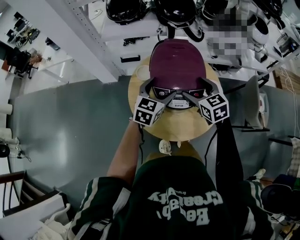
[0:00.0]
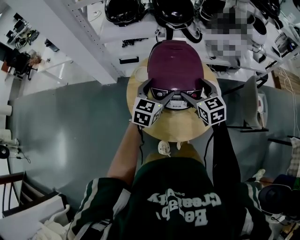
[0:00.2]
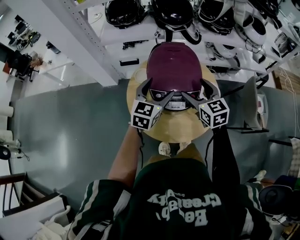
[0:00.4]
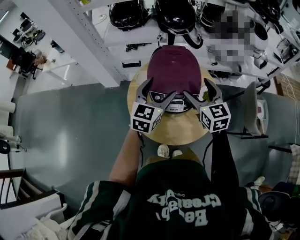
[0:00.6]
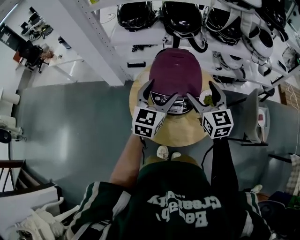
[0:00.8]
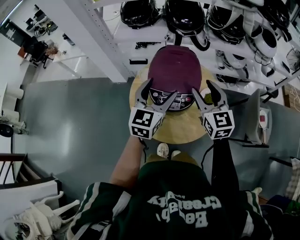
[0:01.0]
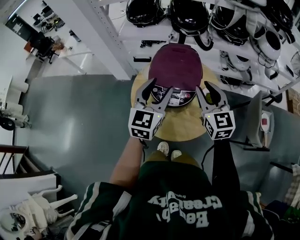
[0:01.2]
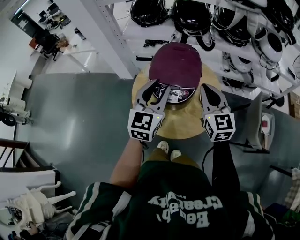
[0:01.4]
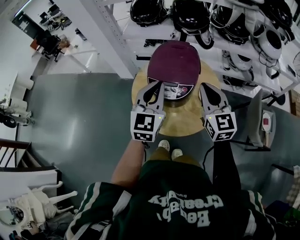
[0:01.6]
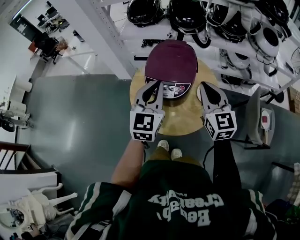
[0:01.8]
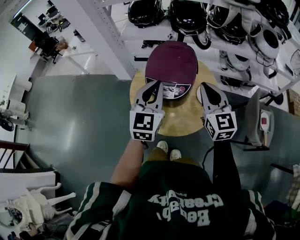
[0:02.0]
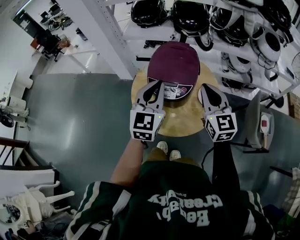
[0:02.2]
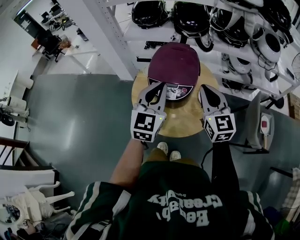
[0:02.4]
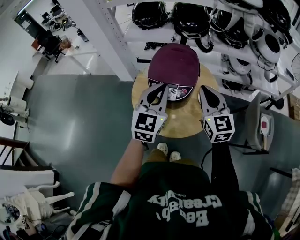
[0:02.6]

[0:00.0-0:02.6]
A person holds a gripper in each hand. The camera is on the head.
0:00.0 to 0:01.2: The left gripper is displaced upward and backward by about 15 cm, changes its angle by about 20 degrees, and closes, while the right gripper travels upward and to the right by roughly 15 cm, changes its angle by roughly 20 degrees, and closes its fingers.
0:01.2 to 0:02.6: The left gripper is displaced backward by some 5 cm, and closes.

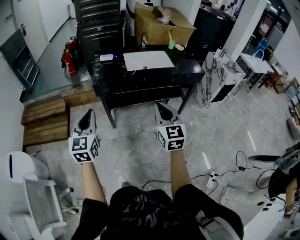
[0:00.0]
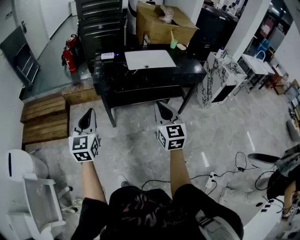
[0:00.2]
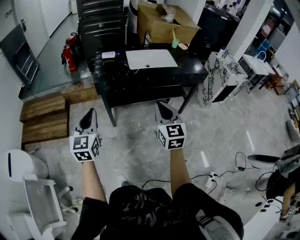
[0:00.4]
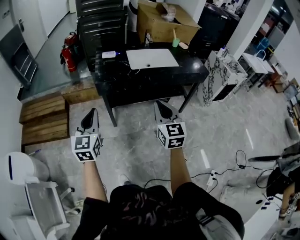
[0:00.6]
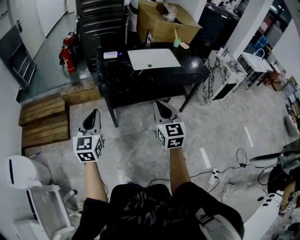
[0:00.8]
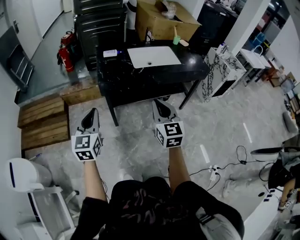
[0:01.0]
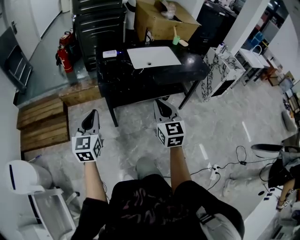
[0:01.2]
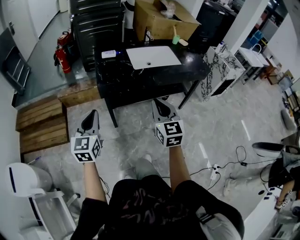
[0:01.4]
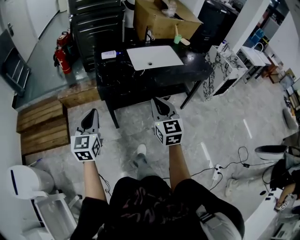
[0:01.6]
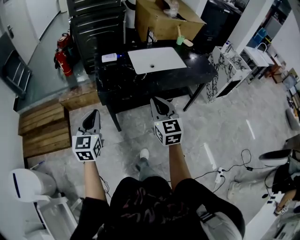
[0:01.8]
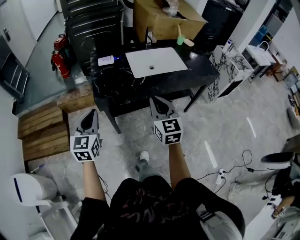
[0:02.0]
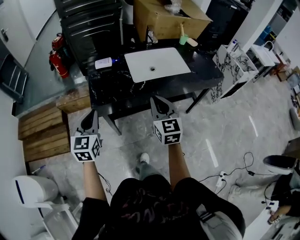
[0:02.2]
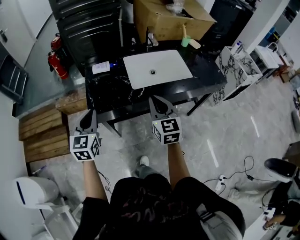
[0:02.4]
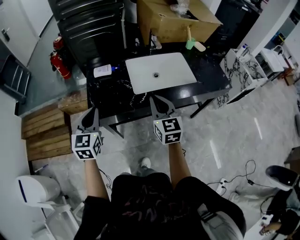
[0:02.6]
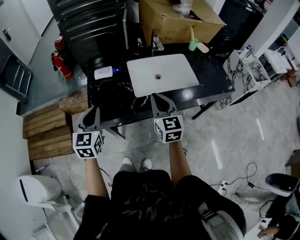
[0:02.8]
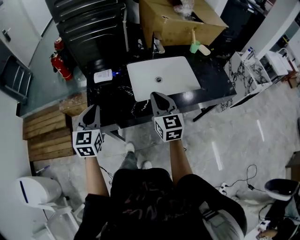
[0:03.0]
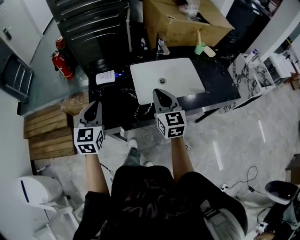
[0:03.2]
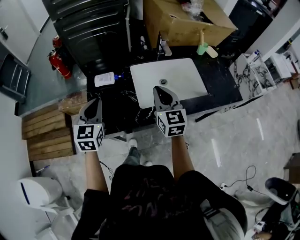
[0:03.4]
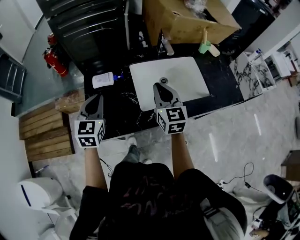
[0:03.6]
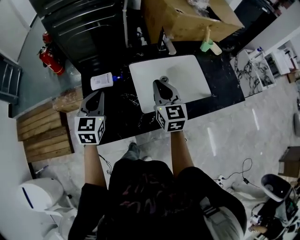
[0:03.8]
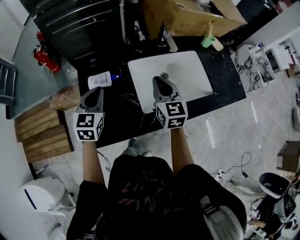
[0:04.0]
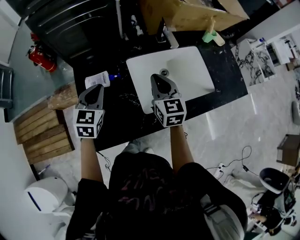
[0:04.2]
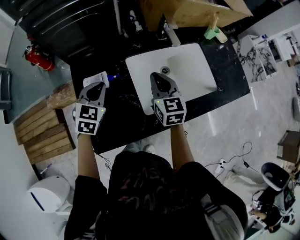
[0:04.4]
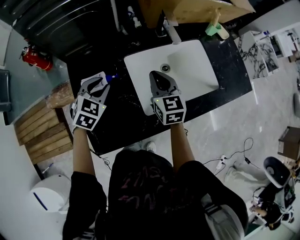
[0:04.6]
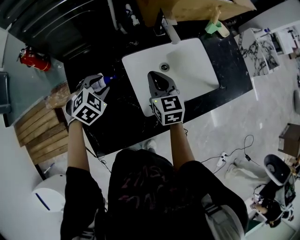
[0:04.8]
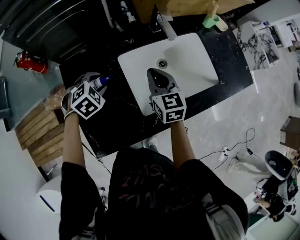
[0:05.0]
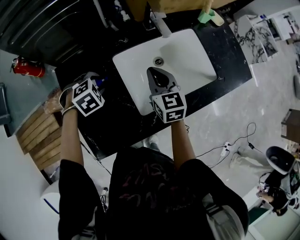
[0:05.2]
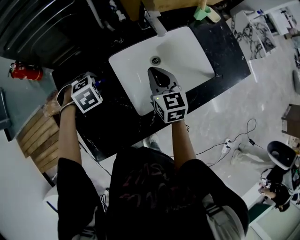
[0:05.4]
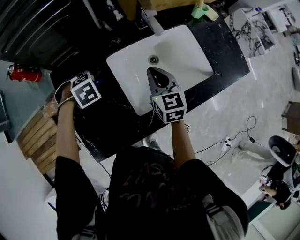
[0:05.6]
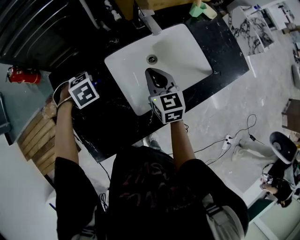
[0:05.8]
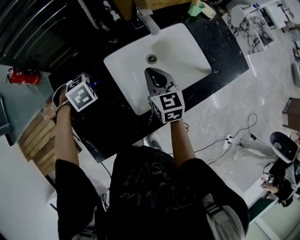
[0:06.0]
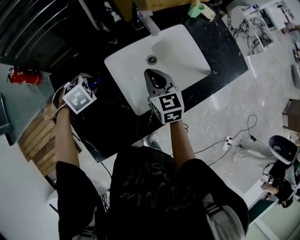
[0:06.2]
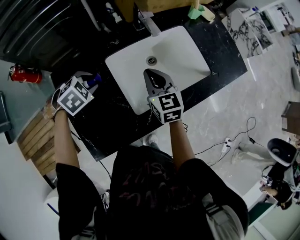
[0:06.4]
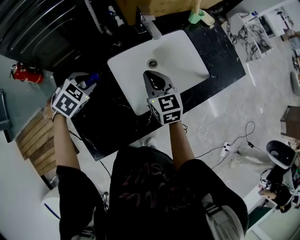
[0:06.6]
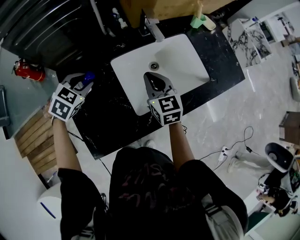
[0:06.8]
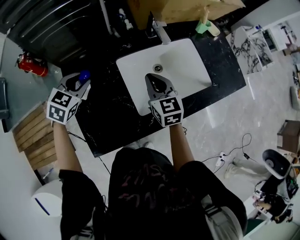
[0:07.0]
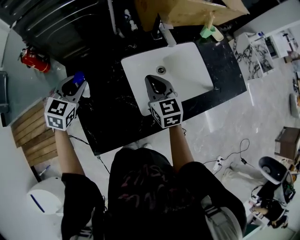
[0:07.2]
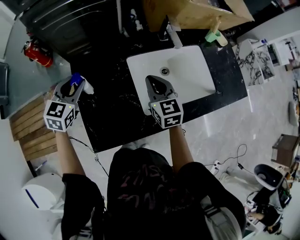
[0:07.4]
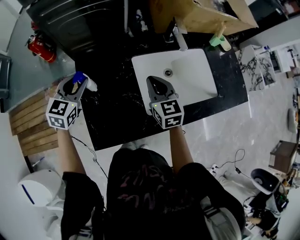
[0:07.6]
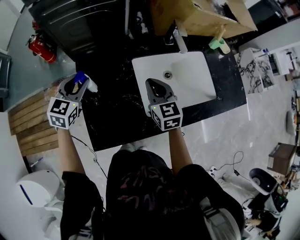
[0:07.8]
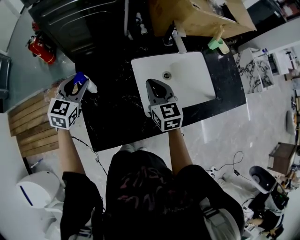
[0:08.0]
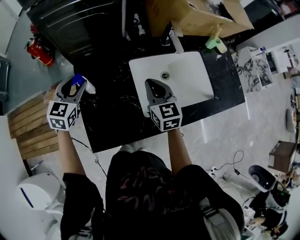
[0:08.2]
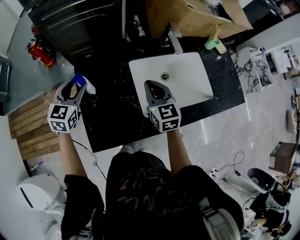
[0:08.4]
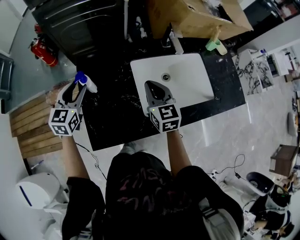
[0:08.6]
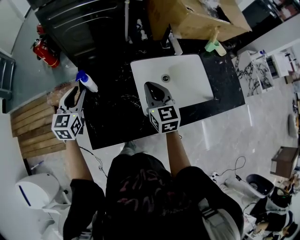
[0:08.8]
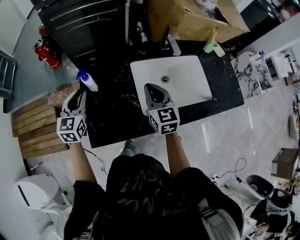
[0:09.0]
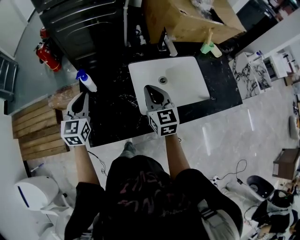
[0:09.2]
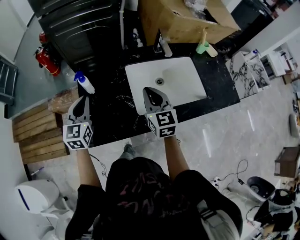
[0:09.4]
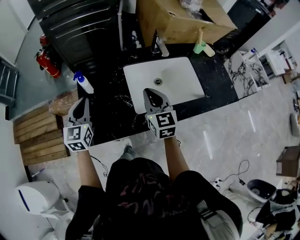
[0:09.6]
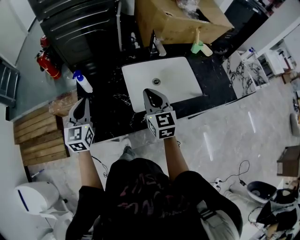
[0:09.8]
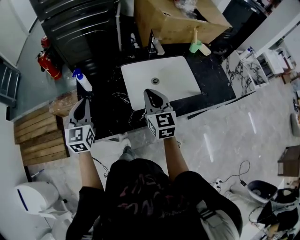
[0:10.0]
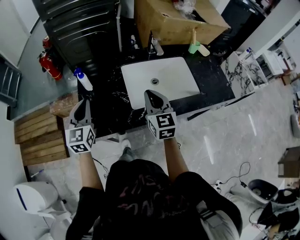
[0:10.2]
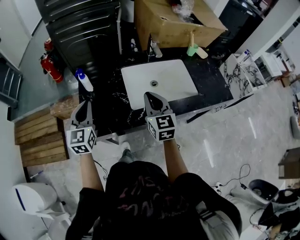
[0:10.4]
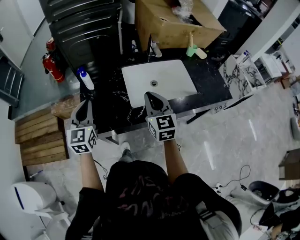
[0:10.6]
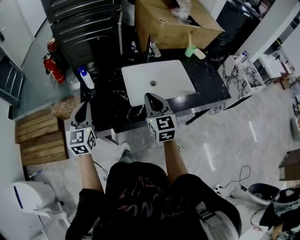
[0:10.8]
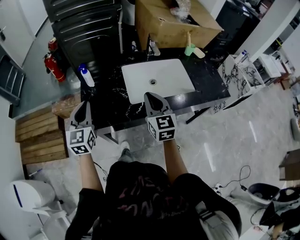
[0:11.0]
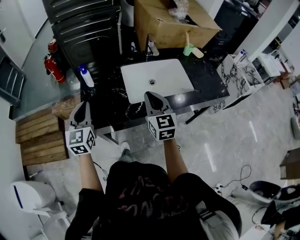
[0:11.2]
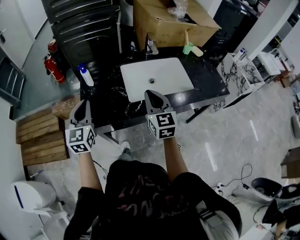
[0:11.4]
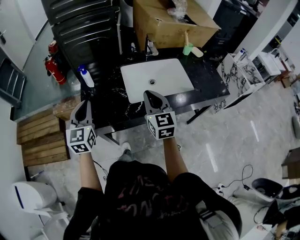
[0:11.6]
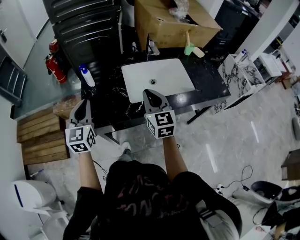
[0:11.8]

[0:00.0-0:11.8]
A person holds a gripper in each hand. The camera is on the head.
0:00.0 to 0:01.4: The left gripper goes roughly 15 cm forward and to the left. The right gripper goes some 15 cm to the left and forward.
0:01.4 to 0:03.0: Both grippers move forward, approximately 35 cm.
0:03.0 to 0:04.4: The left gripper shifts roughly 30 cm forward and downward, and changes its angle by roughly 30 degrees. Meanwhile the right gripper moves forward, some 20 cm.
0:04.4 to 0:06.0: The right gripper moves approximately 5 cm; the left gripper travels downward by about 10 cm, tilts its fingers approximately 50 degrees downward, and opens up.
0:06.0 to 0:07.4: The right gripper changes place by some 10 cm. Meanwhile the left gripper goes roughly 15 cm upward, and points its fingers approximately 50 degrees further upward.
0:07.4 to 0:08.8: The left gripper moves backward, roughly 5 cm.
0:08.8 to 0:10.4: Both grippers travel together backward, to the right and upward, roughly 15 cm. The left gripper closes its fingers.
0:10.4 to 0:11.8: The grippers both shift backward by approximately 5 cm.

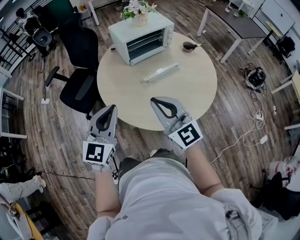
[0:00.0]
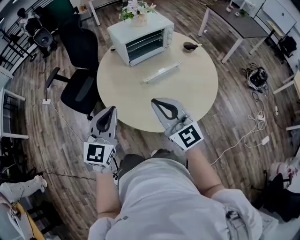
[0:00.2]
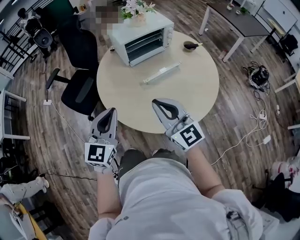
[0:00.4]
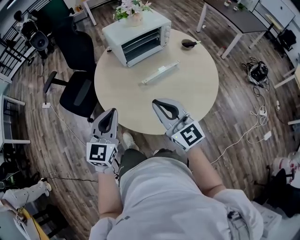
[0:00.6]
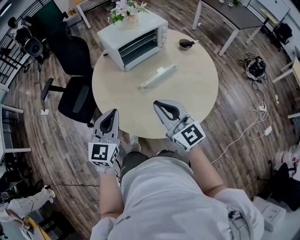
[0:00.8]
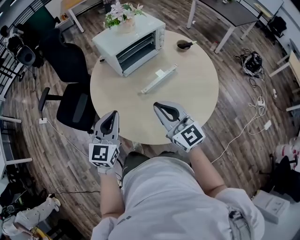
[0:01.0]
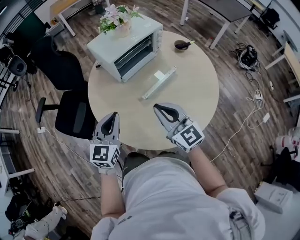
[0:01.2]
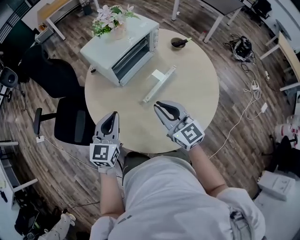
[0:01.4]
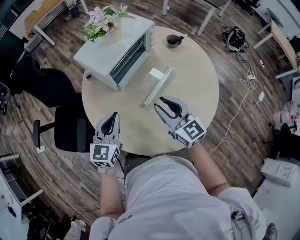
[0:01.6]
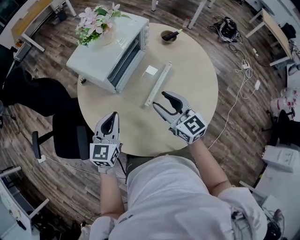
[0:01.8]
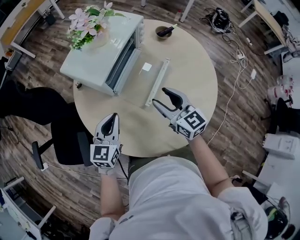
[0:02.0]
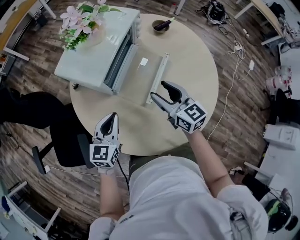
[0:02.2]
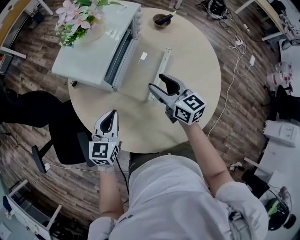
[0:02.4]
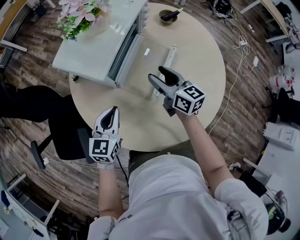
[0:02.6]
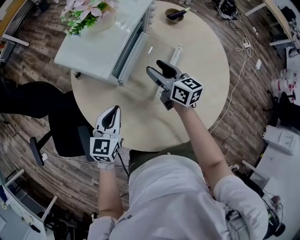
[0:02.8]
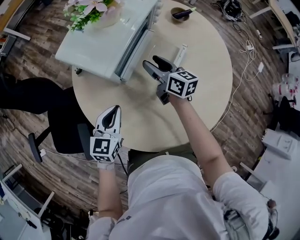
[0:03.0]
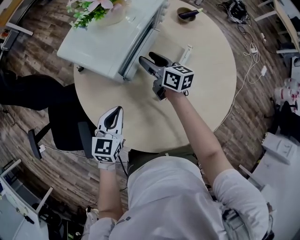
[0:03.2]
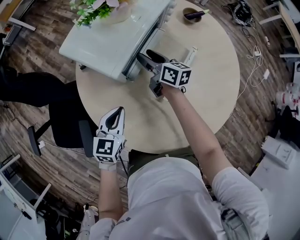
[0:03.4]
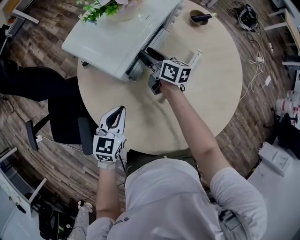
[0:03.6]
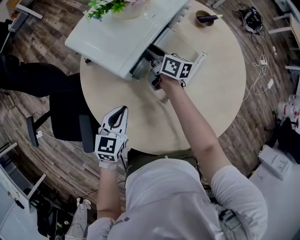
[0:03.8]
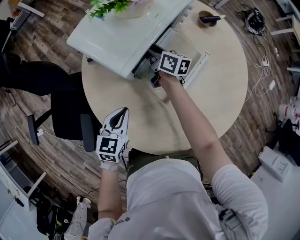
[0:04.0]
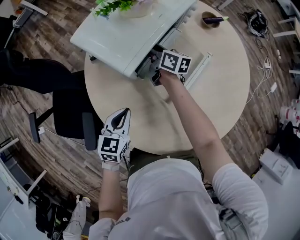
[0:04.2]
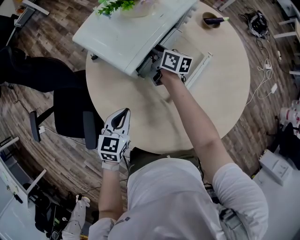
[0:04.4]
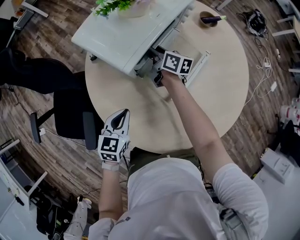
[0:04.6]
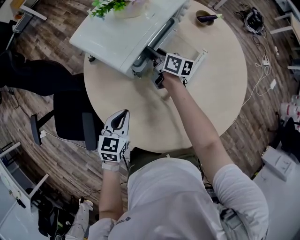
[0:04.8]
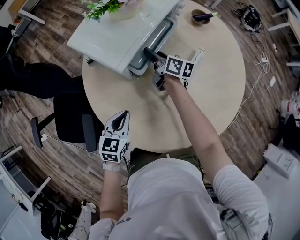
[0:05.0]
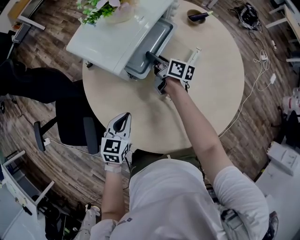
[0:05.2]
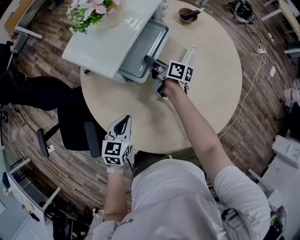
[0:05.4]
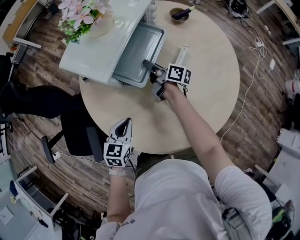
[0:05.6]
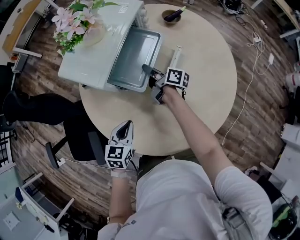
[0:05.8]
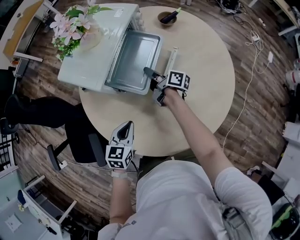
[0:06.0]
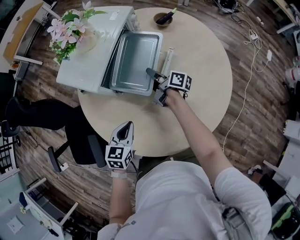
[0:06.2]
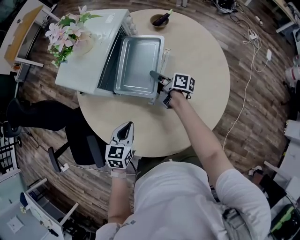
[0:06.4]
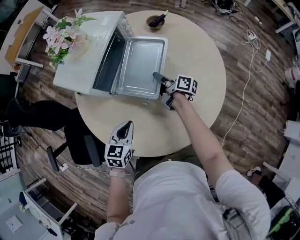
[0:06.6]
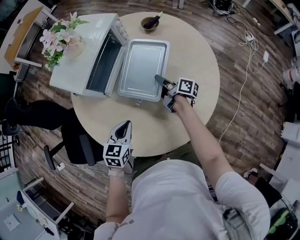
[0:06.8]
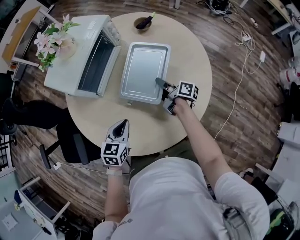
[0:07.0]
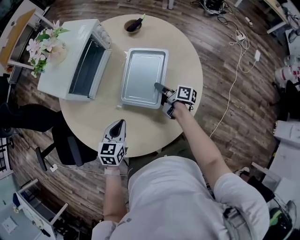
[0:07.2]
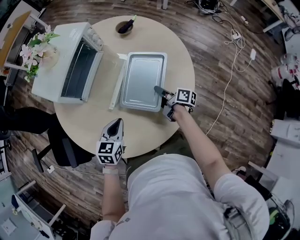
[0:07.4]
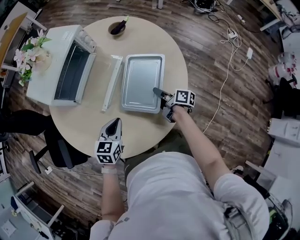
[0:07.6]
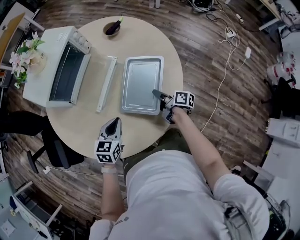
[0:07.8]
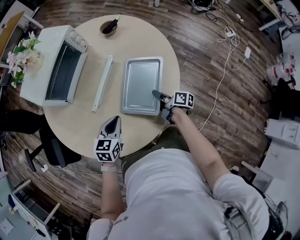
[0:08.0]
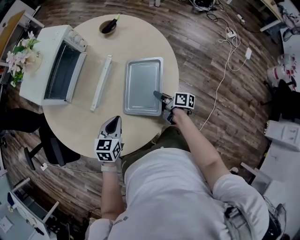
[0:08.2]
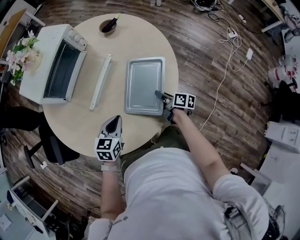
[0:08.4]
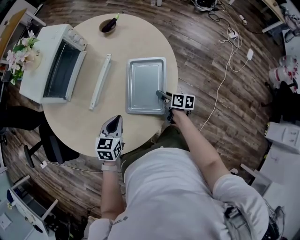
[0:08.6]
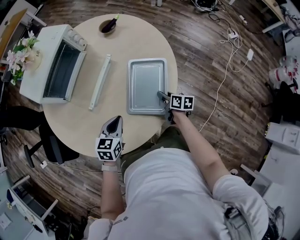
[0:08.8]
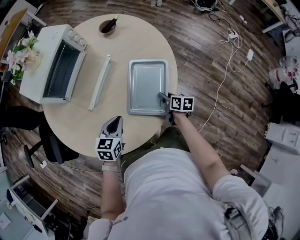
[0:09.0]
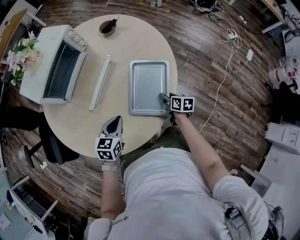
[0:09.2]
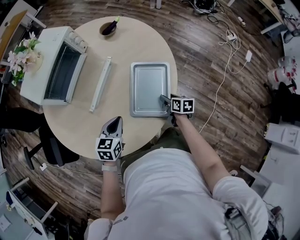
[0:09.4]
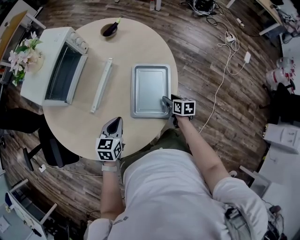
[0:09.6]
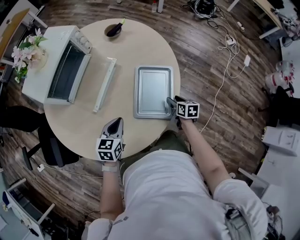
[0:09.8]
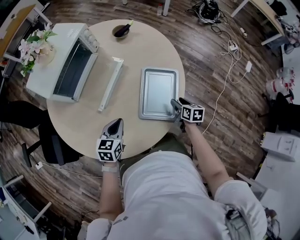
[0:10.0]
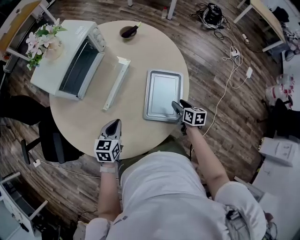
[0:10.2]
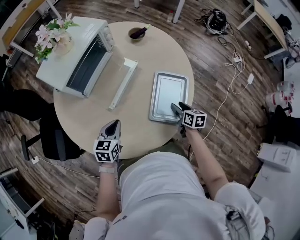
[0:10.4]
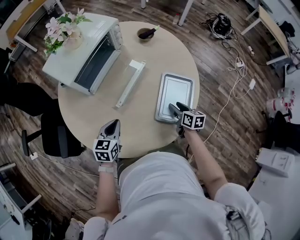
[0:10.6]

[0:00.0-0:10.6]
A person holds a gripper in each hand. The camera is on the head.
0:00.0 to 0:01.6: The grippers both shift forward and downward by approximately 30 cm. The right gripper changes its angle by approximately 40 degrees, and opens. Meanwhile the left gripper swivels roughly 30 degrees.
0:01.6 to 0:03.0: The right gripper heads forward and downward, covering some 25 cm, swivels some 40 degrees, and opens up, while the left gripper travels downward, forward and to the left by about 15 cm.
0:03.0 to 0:04.6: The left gripper ends up approximately 5 cm from where it was, while the right gripper shifts about 15 cm forward, to the left and downward.
0:04.6 to 0:06.0: The left gripper shifts approximately 5 cm to the right, while the right gripper goes roughly 15 cm to the right and backward, rotates some 30 degrees, and closes.
0:06.0 to 0:07.6: The right gripper goes about 35 cm to the right and backward. The left gripper goes approximately 25 cm to the right.
0:07.6 to 0:09.0: The right gripper goes some 10 cm to the right and downward, and rotates approximately 30 degrees. Meanwhile the left gripper moves to the right, approximately 10 cm.
0:09.0 to 0:10.6: The right gripper goes approximately 15 cm to the left and upward, and opens its fingers. Meanwhile the left gripper shifts approximately 15 cm to the left.
